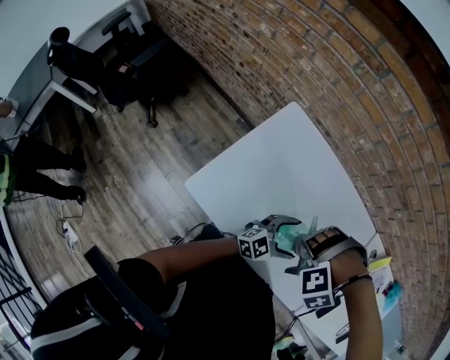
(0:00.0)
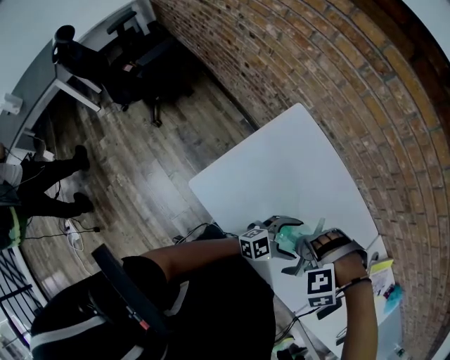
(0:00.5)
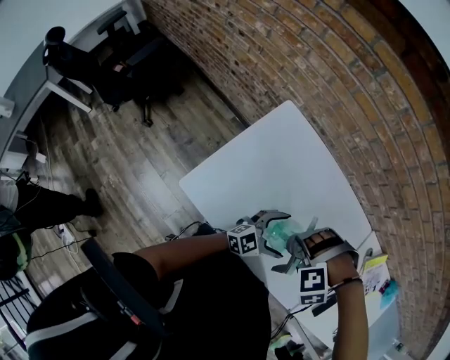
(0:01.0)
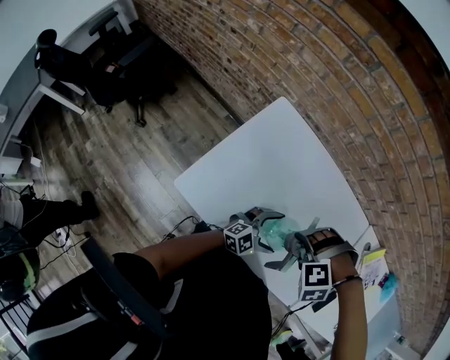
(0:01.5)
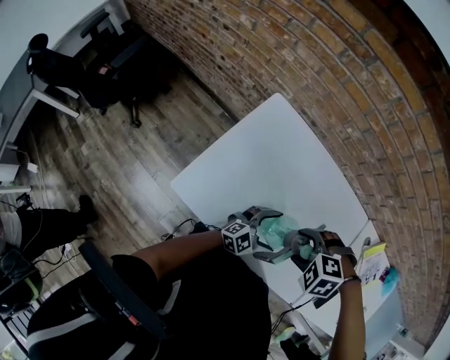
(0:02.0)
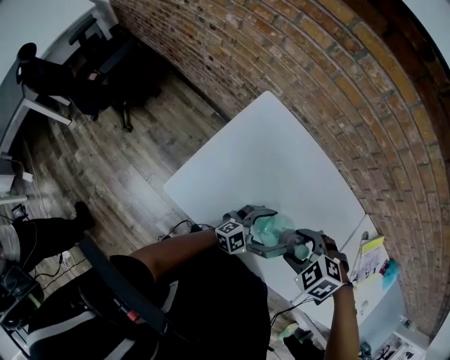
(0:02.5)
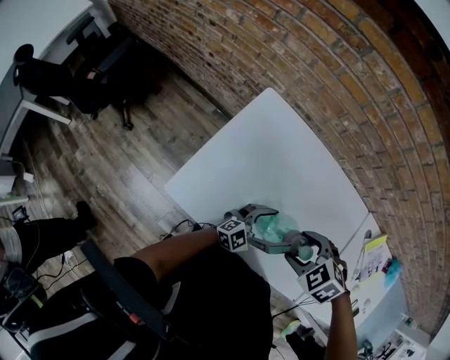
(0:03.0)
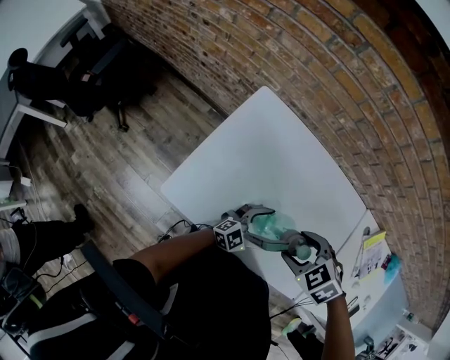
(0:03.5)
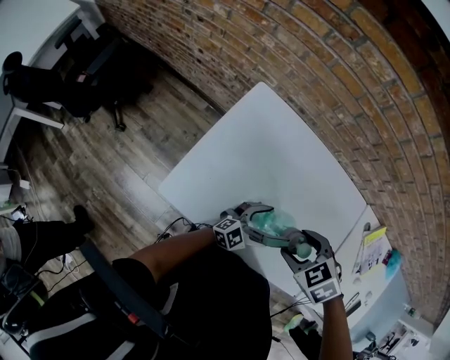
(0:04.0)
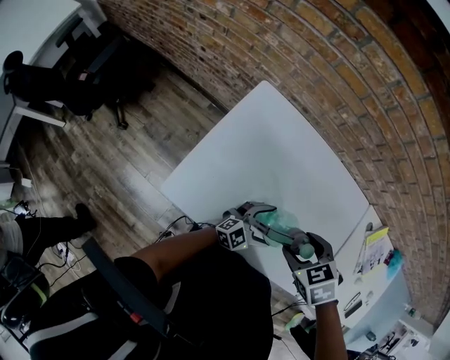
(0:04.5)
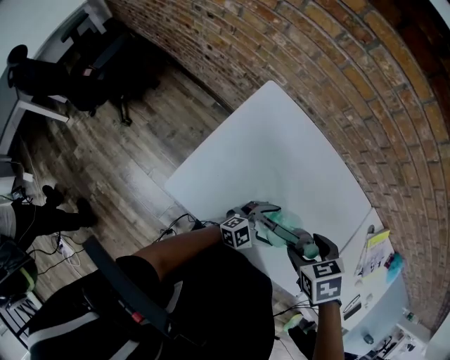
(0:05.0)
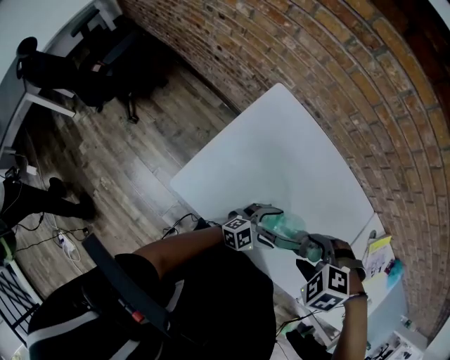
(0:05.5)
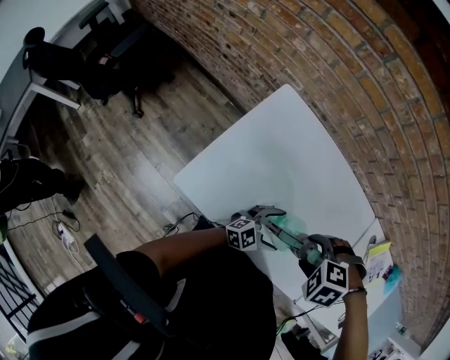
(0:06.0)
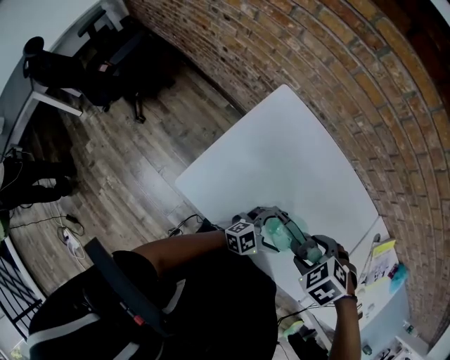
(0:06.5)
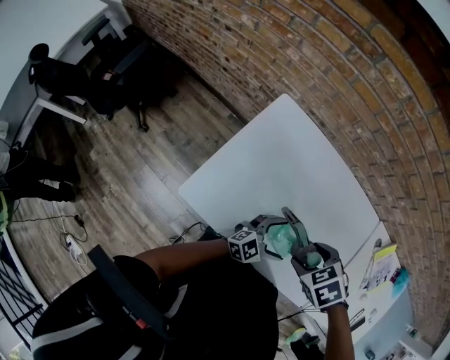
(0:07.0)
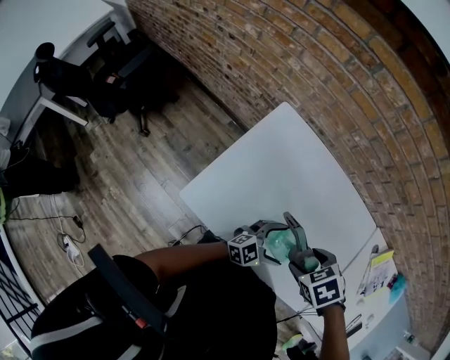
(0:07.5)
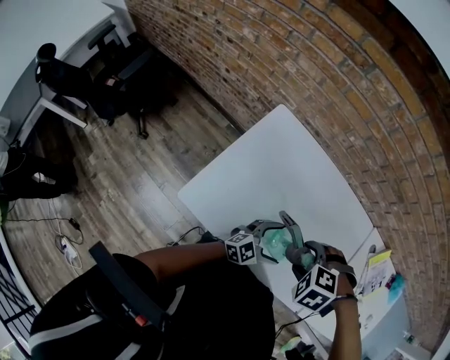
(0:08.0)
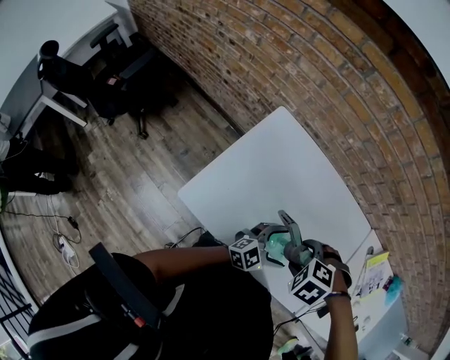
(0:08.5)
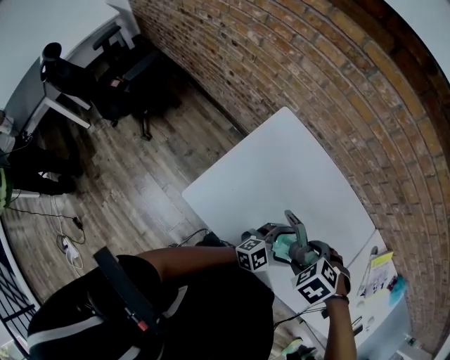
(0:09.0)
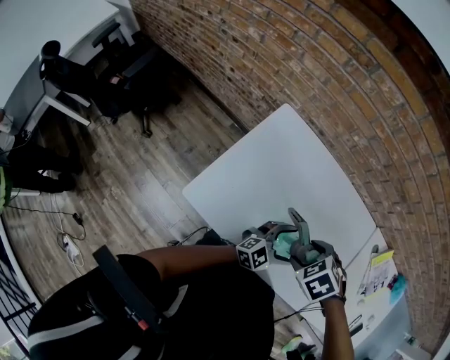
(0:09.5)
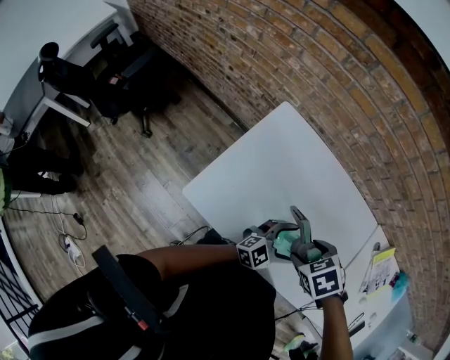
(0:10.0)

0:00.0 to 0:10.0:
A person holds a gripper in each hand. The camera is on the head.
0:00.0 to 0:02.0: The left gripper shifts by approximately 5 cm. Meanwhile the right gripper twists approximately 40 degrees clockwise, seen from behind.
0:02.0 to 0:04.0: The right gripper twists some 40 degrees clockwise, seen from behind.
0:04.0 to 0:06.0: The right gripper swivels some 40 degrees.
0:08.0 to 0:10.0: The right gripper rotates around the line of its fingers by some 40 degrees, clockwise from behind.

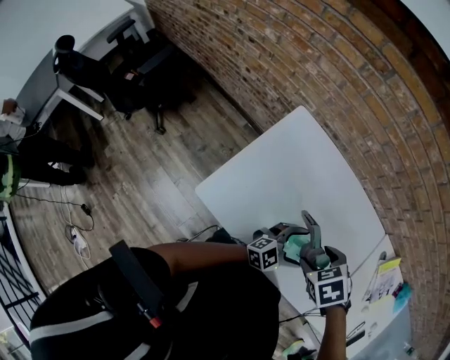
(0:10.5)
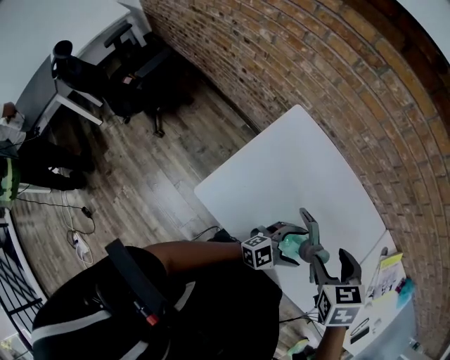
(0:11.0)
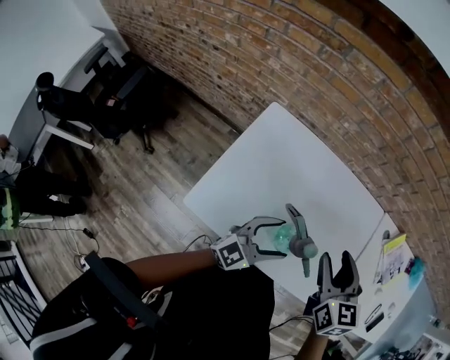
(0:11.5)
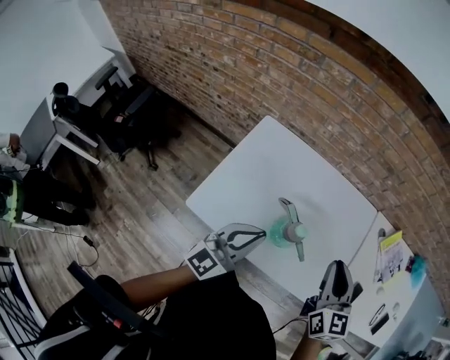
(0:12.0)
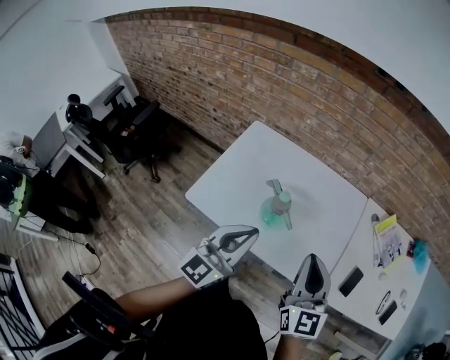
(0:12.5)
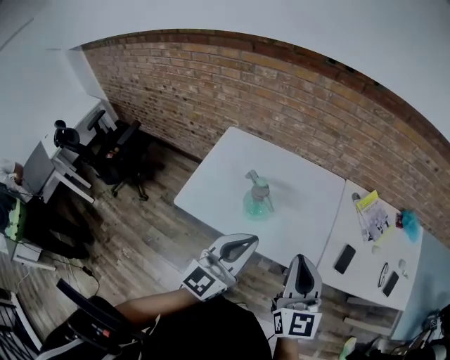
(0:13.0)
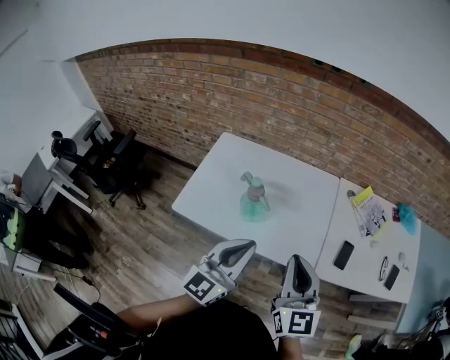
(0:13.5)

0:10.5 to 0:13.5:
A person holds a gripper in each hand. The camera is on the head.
0:10.5 to 0:12.0: The two grippers go about 15 cm upward. The left gripper turns by approximately 30 degrees, and closes, while the right gripper tilts its fingers roughly 60 degrees upward, and closes up.
0:12.0 to 0:13.5: The right gripper moves backward, approximately 20 cm; the left gripper is displaced backward, to the right and upward by roughly 25 cm.

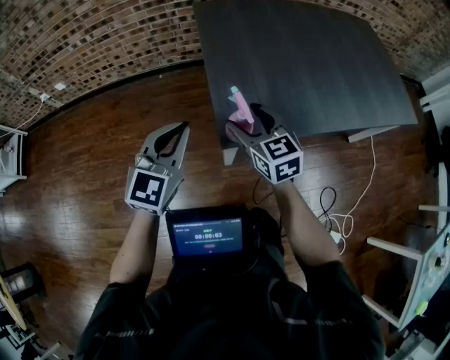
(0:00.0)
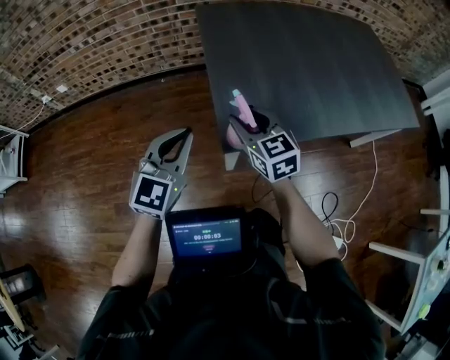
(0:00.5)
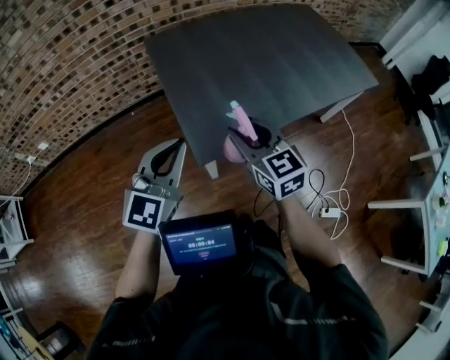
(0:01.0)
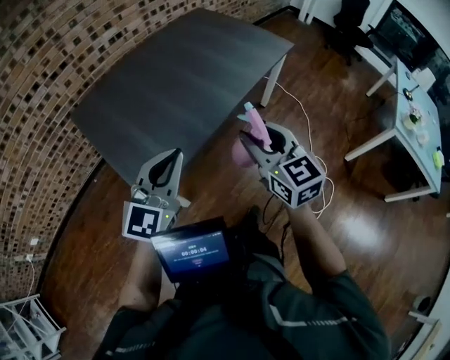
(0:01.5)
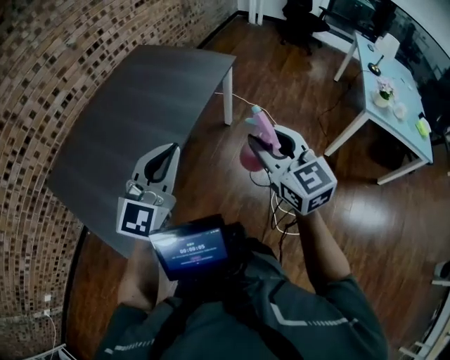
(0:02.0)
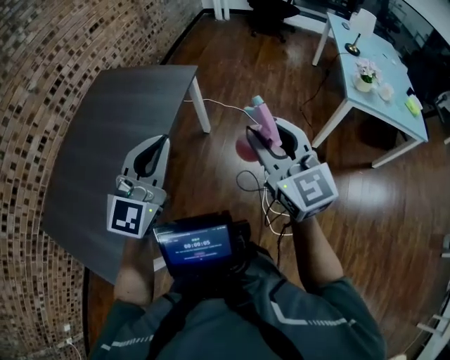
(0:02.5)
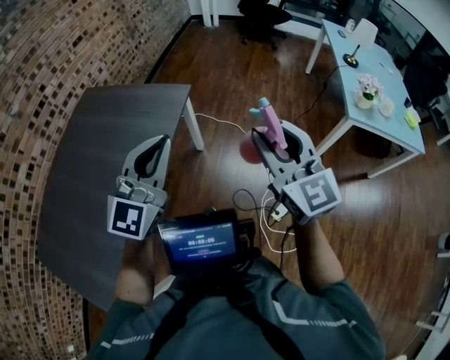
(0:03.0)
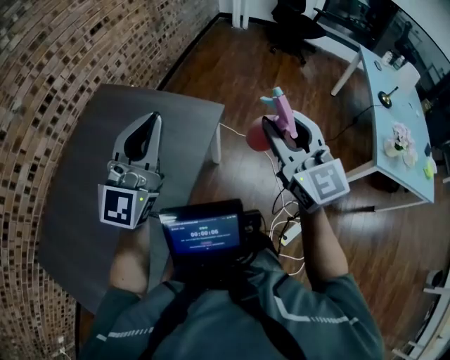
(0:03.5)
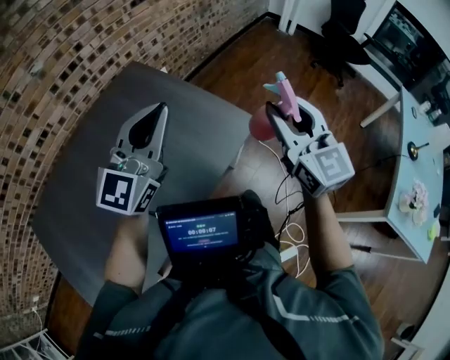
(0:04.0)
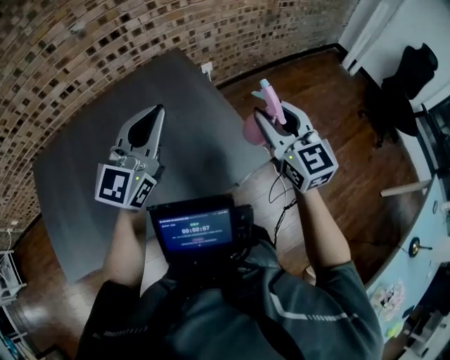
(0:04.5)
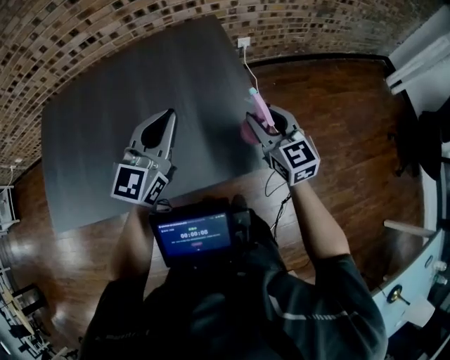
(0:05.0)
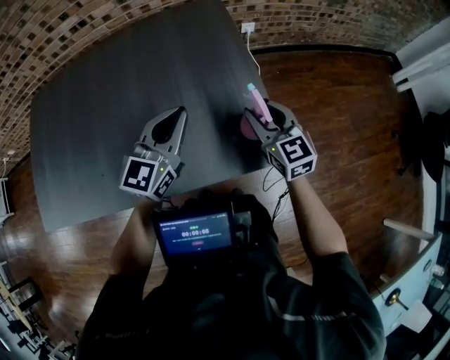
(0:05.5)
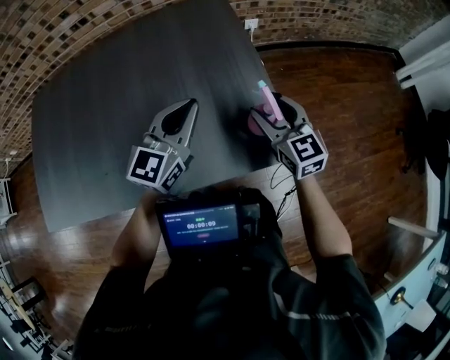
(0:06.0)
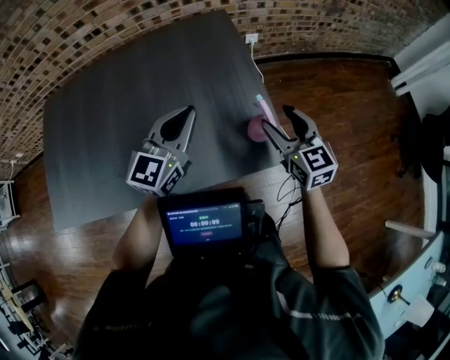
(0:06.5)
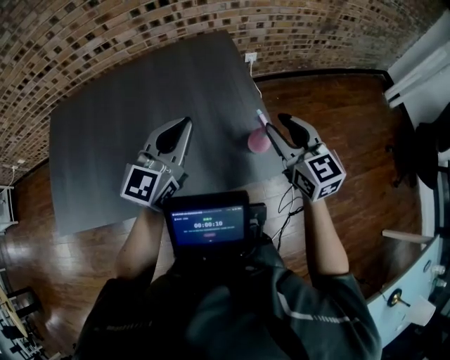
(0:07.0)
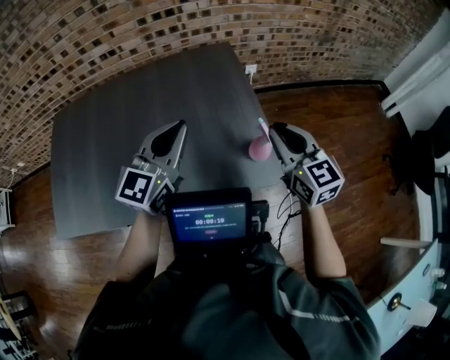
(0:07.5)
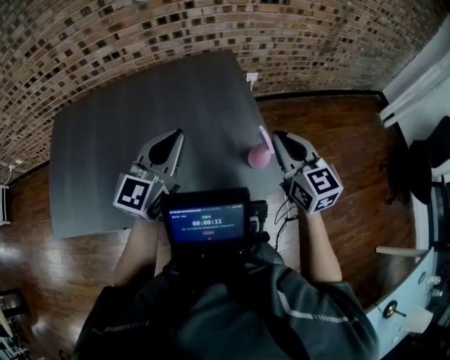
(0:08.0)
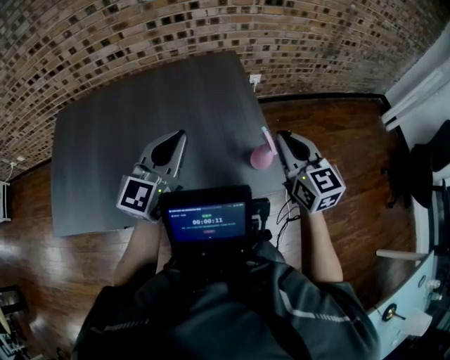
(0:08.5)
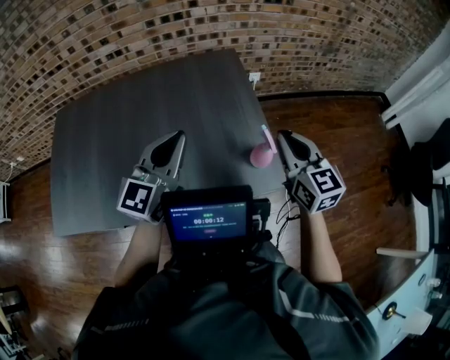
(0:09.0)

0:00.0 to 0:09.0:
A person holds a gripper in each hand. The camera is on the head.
0:00.0 to 0:02.0: The pair of grippers is taken approximately 50 cm. The right gripper swivels approximately 50 degrees, and closes its fingers. The left gripper swivels roughly 60 degrees.
0:02.0 to 0:04.5: Both grippers are carried roughly 70 cm. The left gripper changes its angle by about 30 degrees. The right gripper rotates about 30 degrees.
0:04.5 to 0:07.0: The left gripper moves about 20 cm downward and comes back; the right gripper goes downward and returns, about 20 cm each way, rotates about 20 degrees, and opens, then closes once more.
0:07.0 to 0:09.0: The right gripper closes.

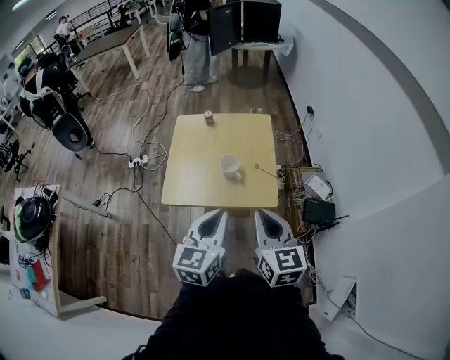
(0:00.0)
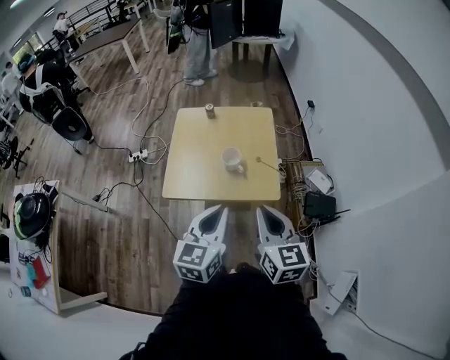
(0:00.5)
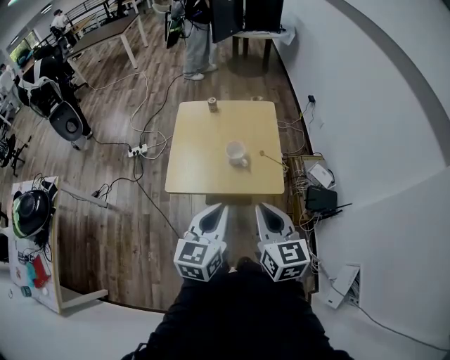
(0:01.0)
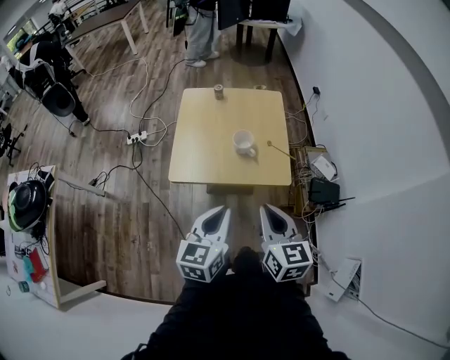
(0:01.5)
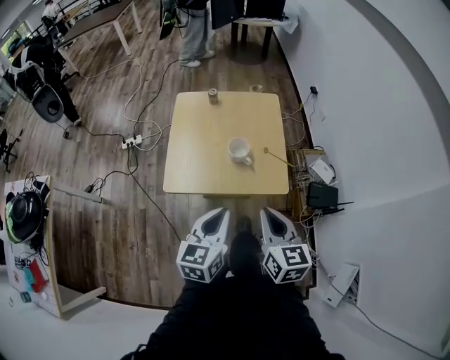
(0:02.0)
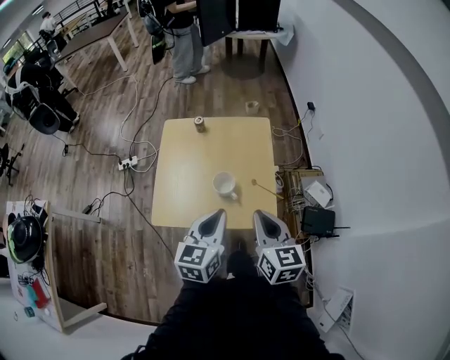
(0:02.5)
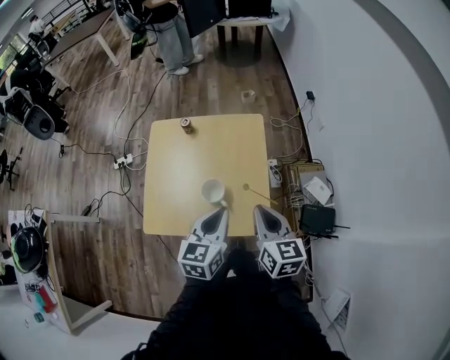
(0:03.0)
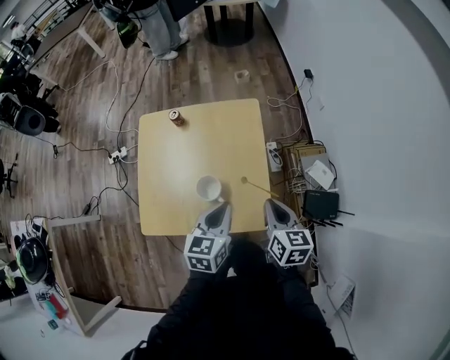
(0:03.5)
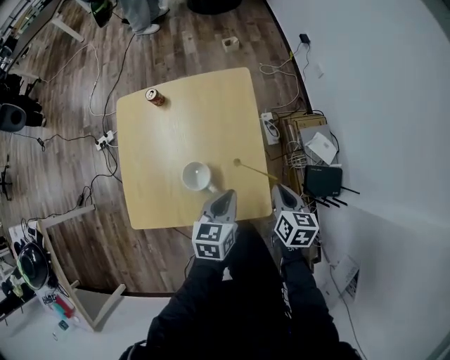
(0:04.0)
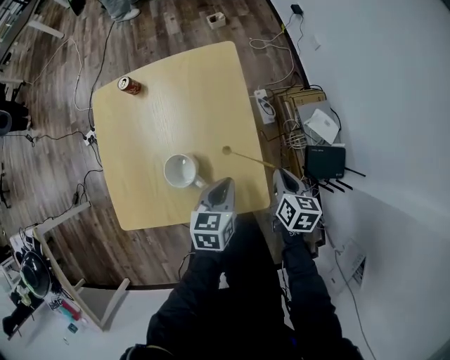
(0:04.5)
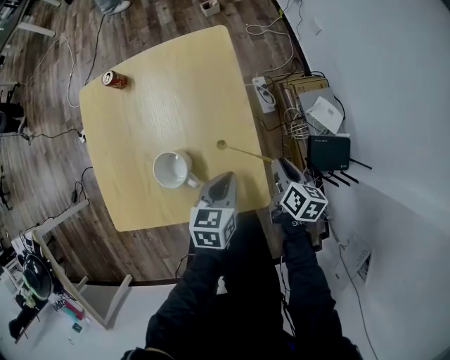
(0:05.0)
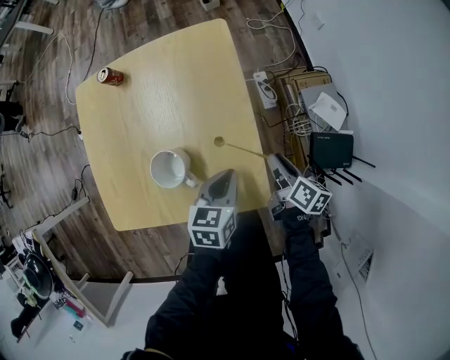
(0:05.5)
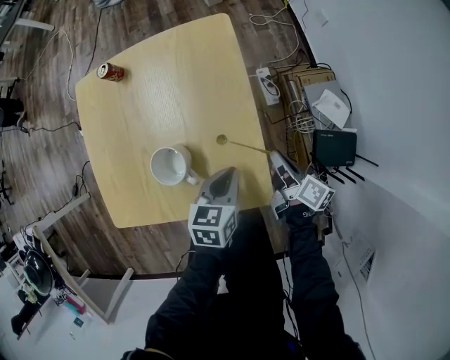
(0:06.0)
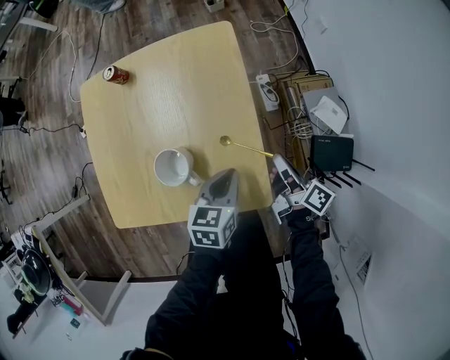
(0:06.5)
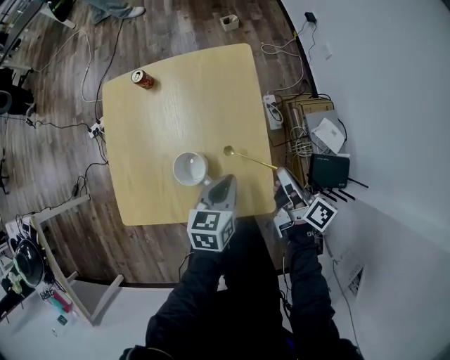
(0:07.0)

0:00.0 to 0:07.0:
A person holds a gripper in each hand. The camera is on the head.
0:00.0 to 0:02.0: The left gripper goes roughly 10 cm downward and to the left; the right gripper moves downward, approximately 5 cm.
0:02.0 to 0:03.5: The left gripper goes roughly 30 cm forward and to the right. The right gripper moves forward, to the right and downward, approximately 30 cm.
0:03.5 to 0:05.0: The left gripper goes approximately 20 cm downward. The right gripper is displaced downward and to the right by approximately 30 cm, and rotates some 30 degrees.
0:05.0 to 0:07.0: The left gripper shifts some 5 cm upward. The right gripper moves upward, about 10 cm, and rotates approximately 40 degrees.